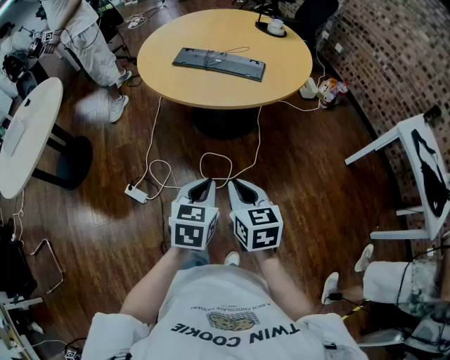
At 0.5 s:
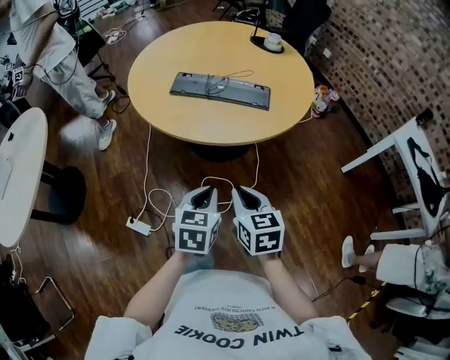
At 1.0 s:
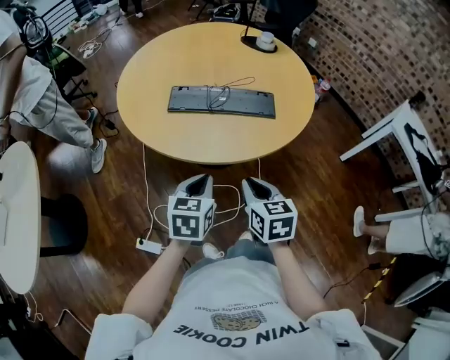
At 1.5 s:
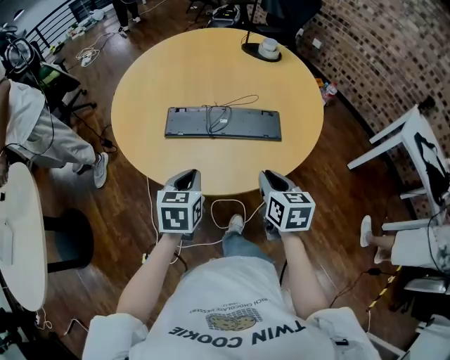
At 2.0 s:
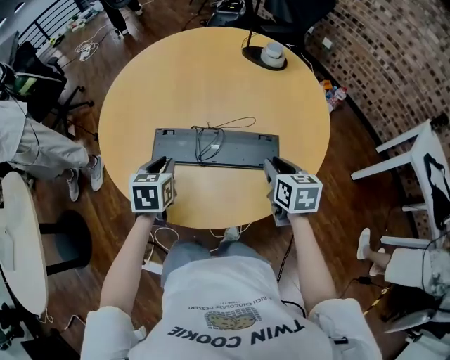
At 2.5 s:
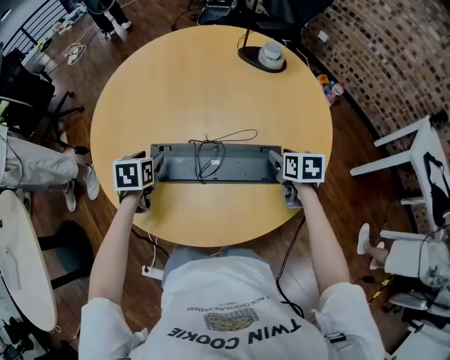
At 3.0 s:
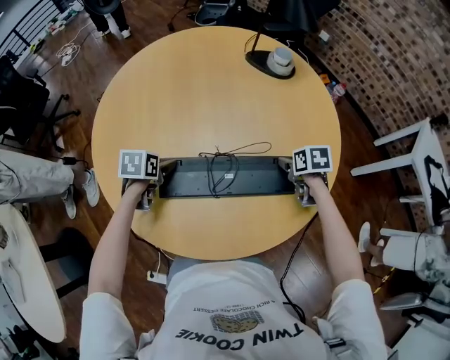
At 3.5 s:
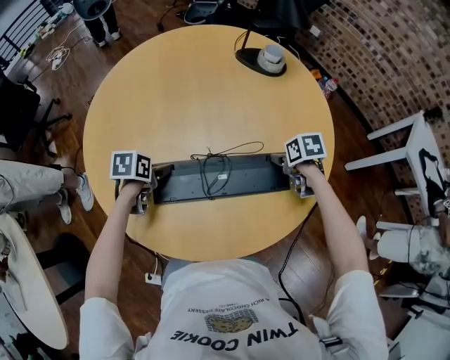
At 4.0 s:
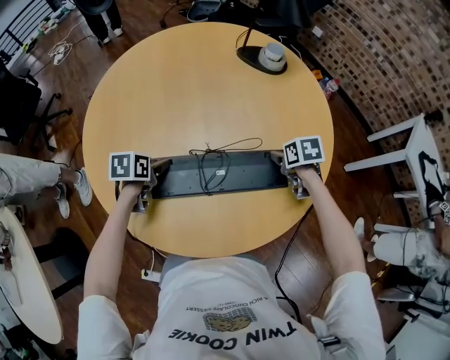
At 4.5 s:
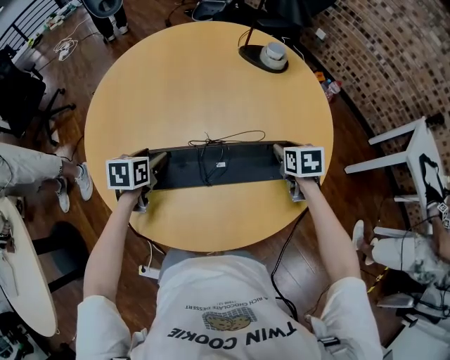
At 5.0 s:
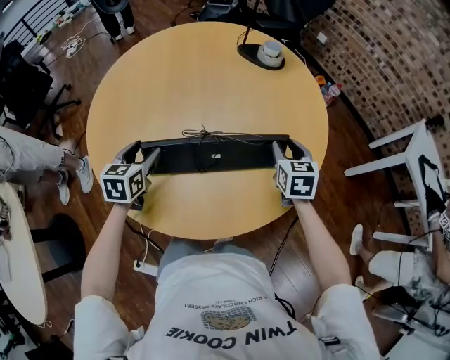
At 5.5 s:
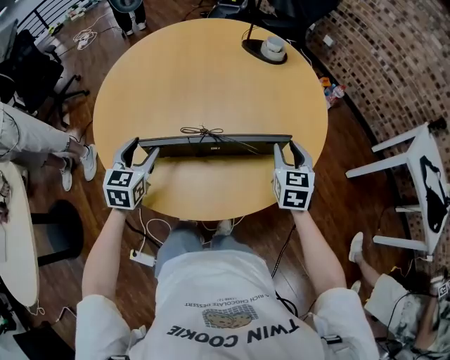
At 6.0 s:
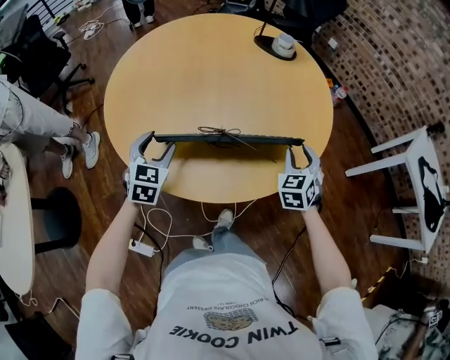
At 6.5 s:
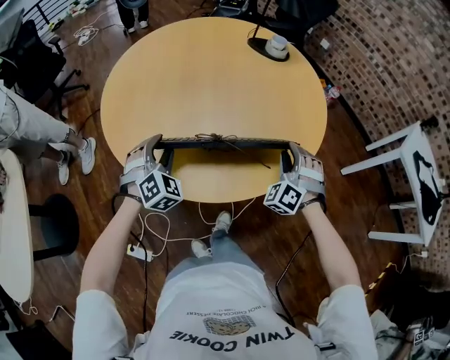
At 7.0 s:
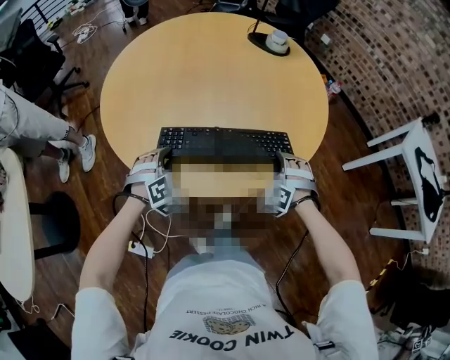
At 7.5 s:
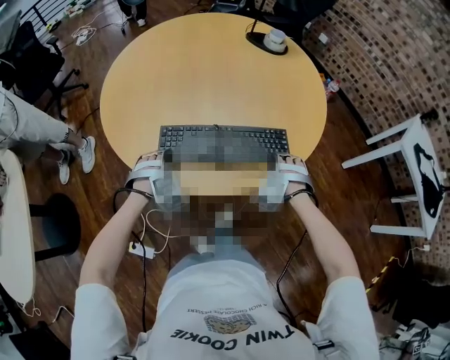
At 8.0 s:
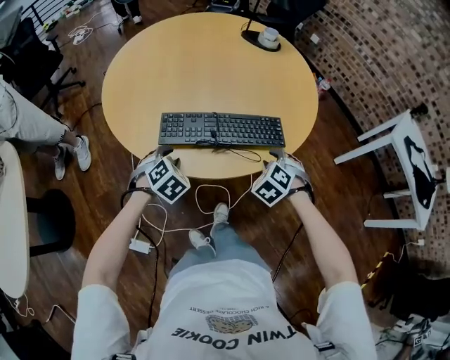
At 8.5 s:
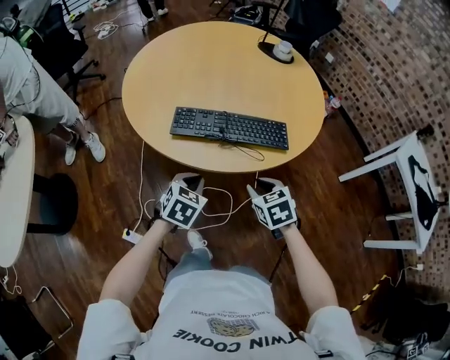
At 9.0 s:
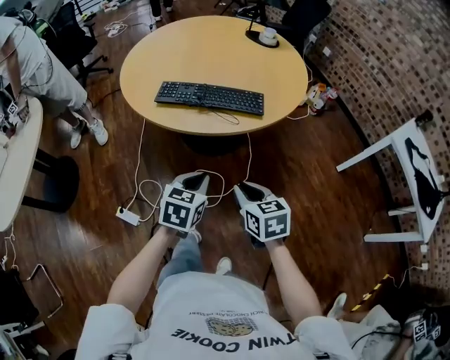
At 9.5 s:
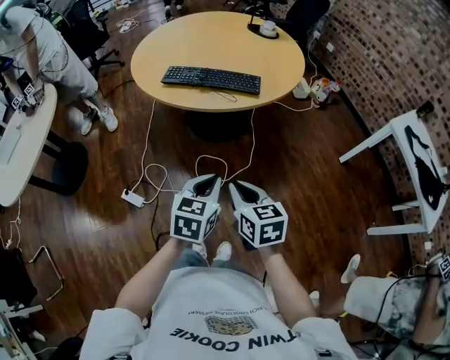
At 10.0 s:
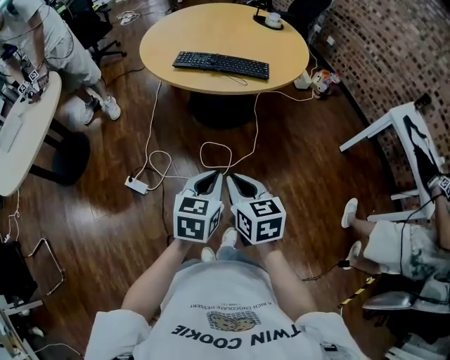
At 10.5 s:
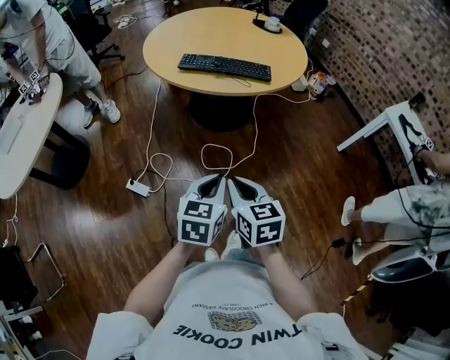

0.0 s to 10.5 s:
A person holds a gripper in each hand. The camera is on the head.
0.0 to 2.0 s: Both grippers are carried forward, roughly 60 cm. The right gripper swivels roughly 20 degrees.
2.0 to 4.0 s: The right gripper is displaced forward and downward by some 15 cm, changes its angle by roughly 30 degrees, and opens its fingers. The left gripper goes roughly 20 cm forward, downward and to the left, changes its angle by roughly 30 degrees, and opens.
4.0 to 6.5 s: The two grippers go approximately 20 cm backward and upward. The right gripper rolls counterclockwise, seen from behind, by approximately 80 degrees. Meanwhile the left gripper rotates around the line of its fingers by some 70 degrees, clockwise from behind.
6.5 to 8.5 s: The right gripper is displaced backward by about 20 cm, and changes its angle by about 70 degrees, while the left gripper moves backward and to the right, about 25 cm, changes its angle by about 50 degrees, and closes its fingers.
8.5 to 10.5 s: The two grippers go some 40 cm backward. The left gripper changes its angle by roughly 30 degrees. Meanwhile the right gripper rotates about 30 degrees, and closes its fingers.

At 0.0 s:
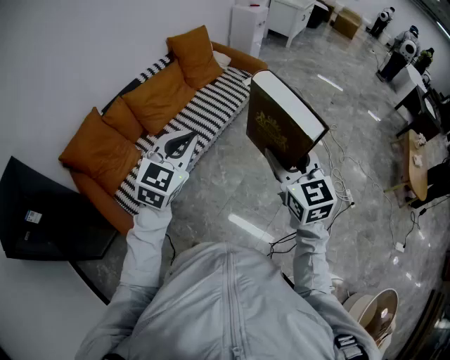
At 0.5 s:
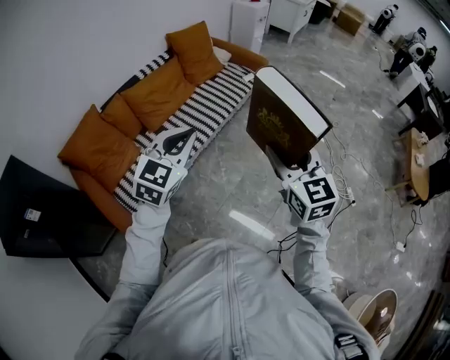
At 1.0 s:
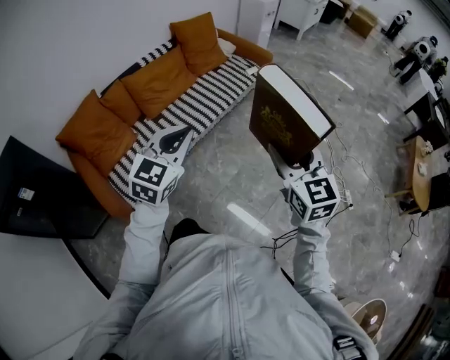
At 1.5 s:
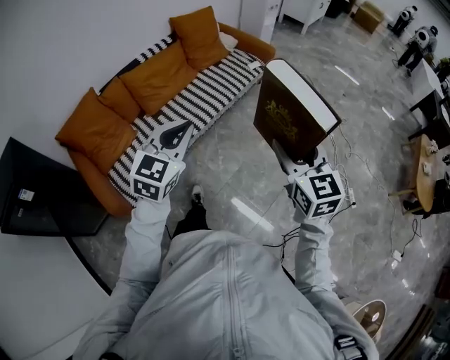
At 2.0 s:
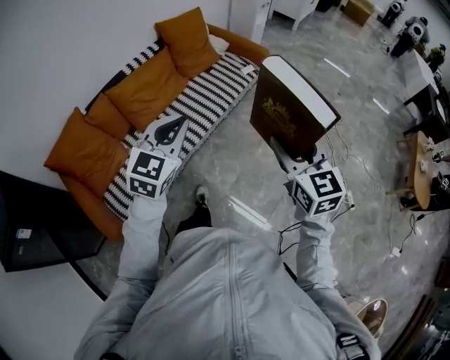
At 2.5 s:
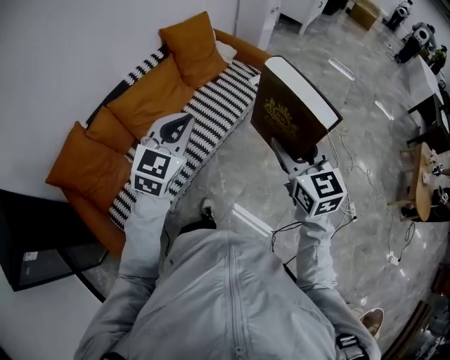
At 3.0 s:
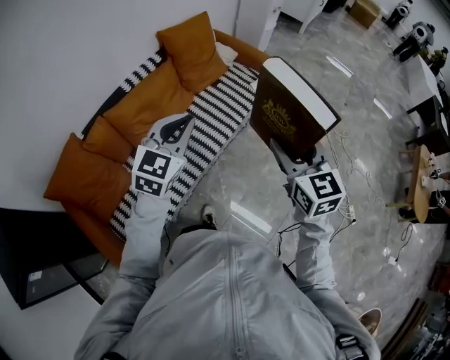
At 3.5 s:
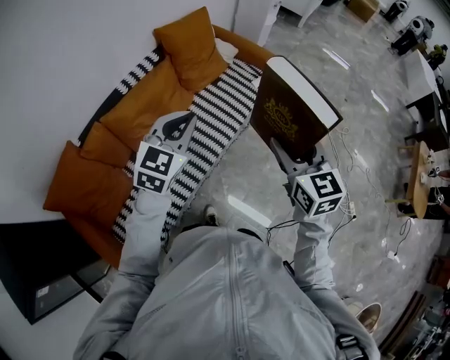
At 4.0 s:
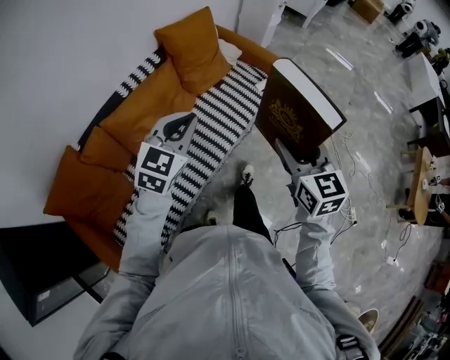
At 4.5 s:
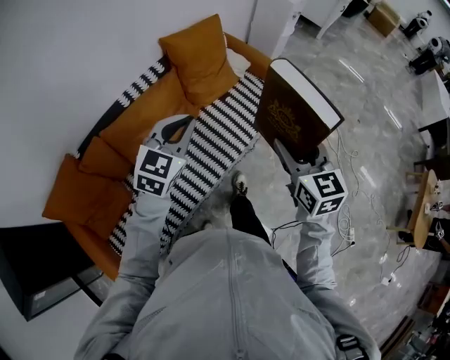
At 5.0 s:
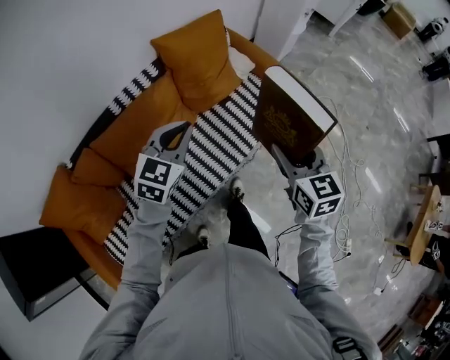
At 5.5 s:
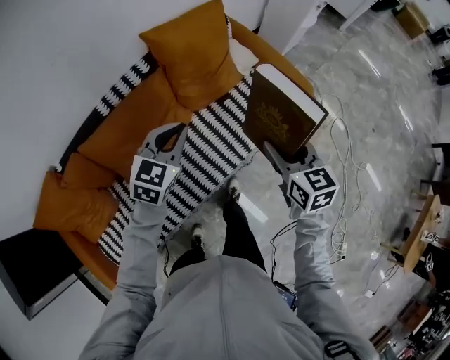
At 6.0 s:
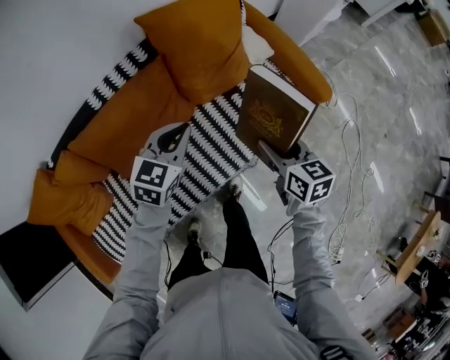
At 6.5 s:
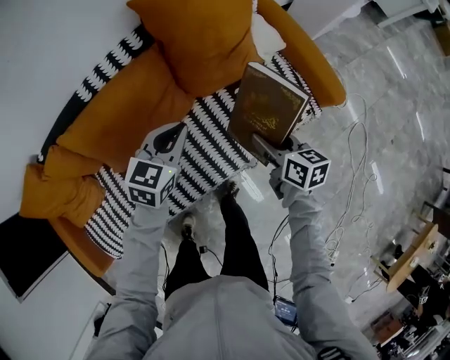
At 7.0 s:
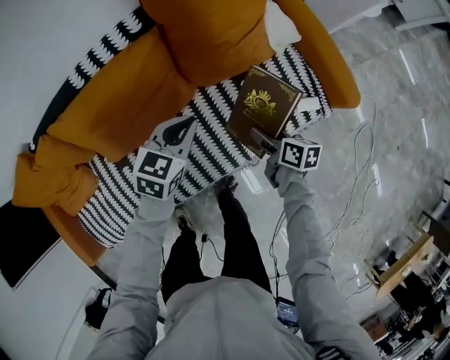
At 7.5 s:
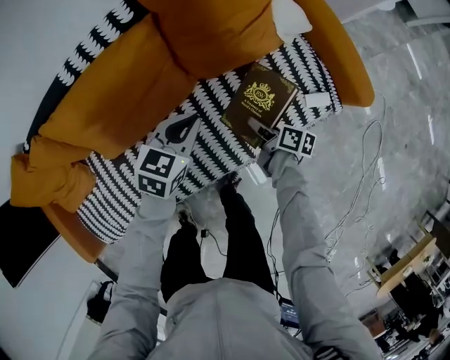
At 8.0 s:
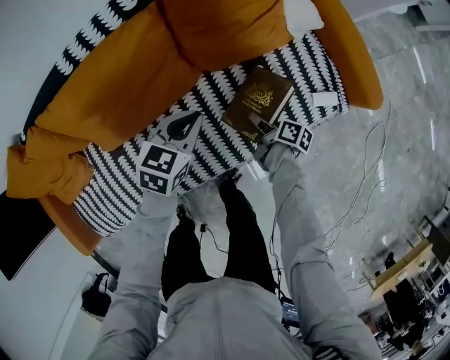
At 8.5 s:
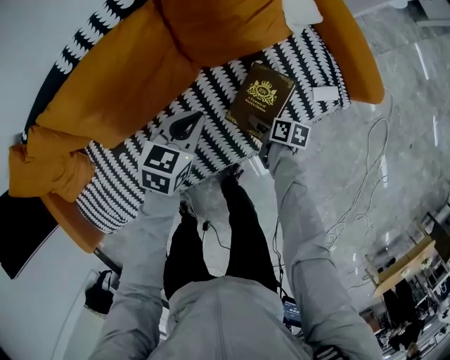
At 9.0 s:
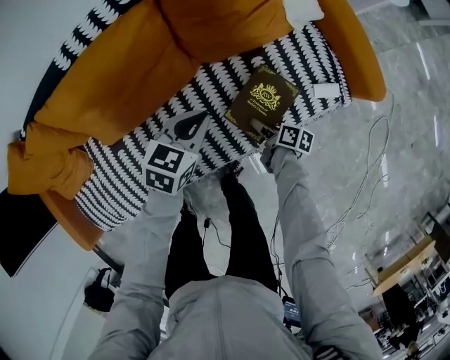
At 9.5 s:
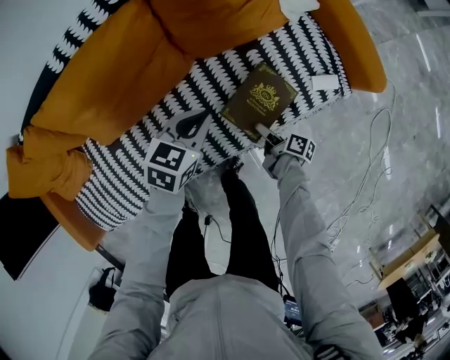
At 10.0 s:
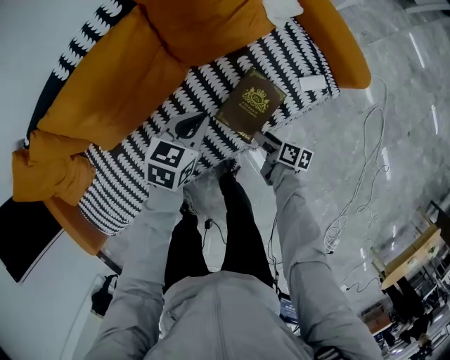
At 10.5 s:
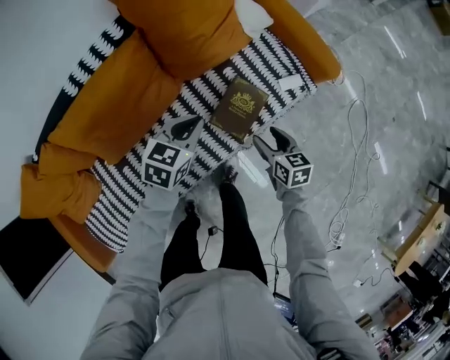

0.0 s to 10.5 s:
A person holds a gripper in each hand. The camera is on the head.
0.0 to 2.0 s: The grippers both shift forward by approximately 15 cm.
2.0 to 4.0 s: The right gripper travels forward and to the left by roughly 30 cm. Meanwhile the left gripper heads forward, covering some 30 cm.
4.0 to 6.5 s: The right gripper moves roughly 50 cm, and rotates about 50 degrees; the left gripper ends up roughly 40 cm from where it was, and turns by approximately 30 degrees.
6.5 to 8.5 s: The left gripper moves downward, approximately 15 cm. Meanwhile the right gripper heads downward, covering approximately 30 cm, and changes its angle by some 30 degrees.
8.5 to 10.5 s: The right gripper is displaced upward by roughly 20 cm, and rotates roughly 40 degrees. Meanwhile the left gripper is displaced upward by roughly 10 cm.

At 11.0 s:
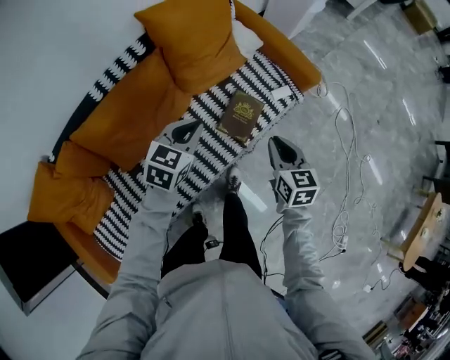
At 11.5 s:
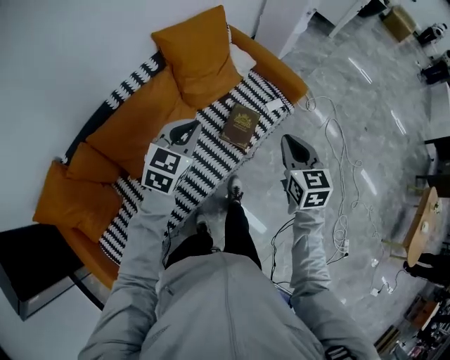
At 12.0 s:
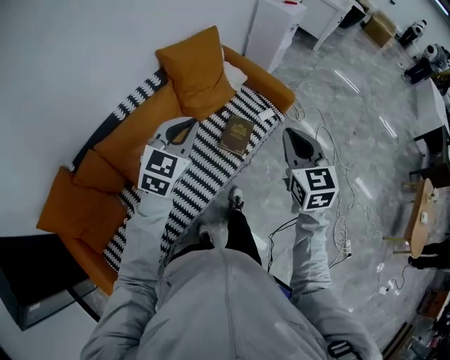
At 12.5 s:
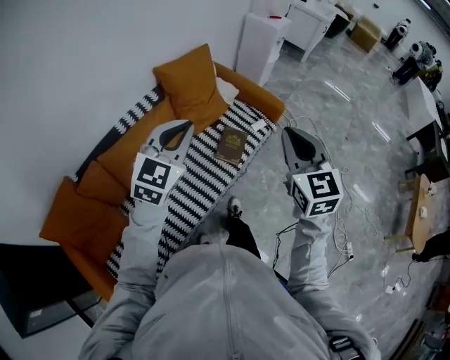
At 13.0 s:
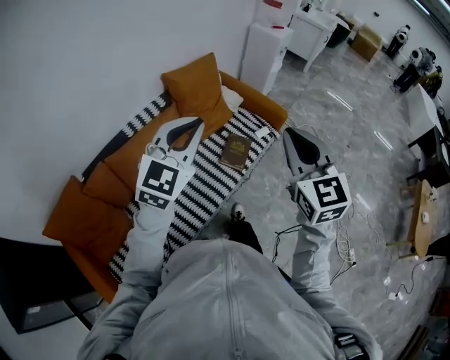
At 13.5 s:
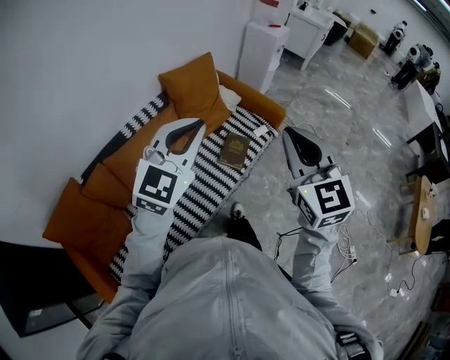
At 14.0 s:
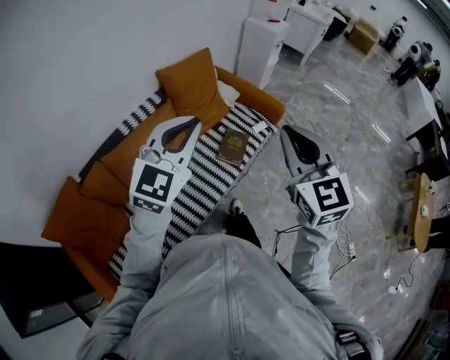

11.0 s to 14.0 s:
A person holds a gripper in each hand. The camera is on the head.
11.0 to 12.5 s: The two grippers go approximately 35 cm upward and backward. The right gripper turns by roughly 30 degrees, while the left gripper changes its angle by some 30 degrees.
12.5 to 14.0 s: Both grippers move upward, about 5 cm.

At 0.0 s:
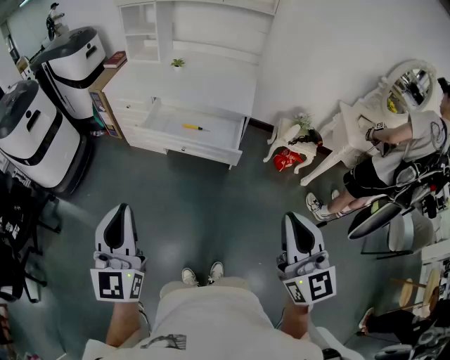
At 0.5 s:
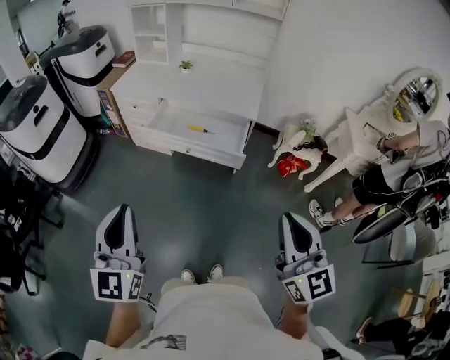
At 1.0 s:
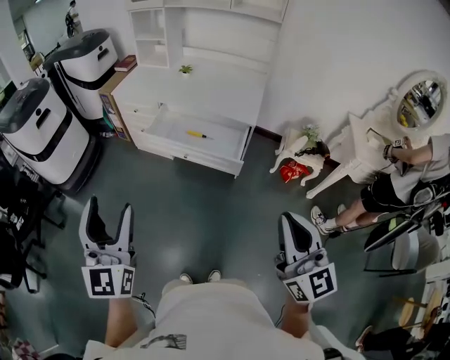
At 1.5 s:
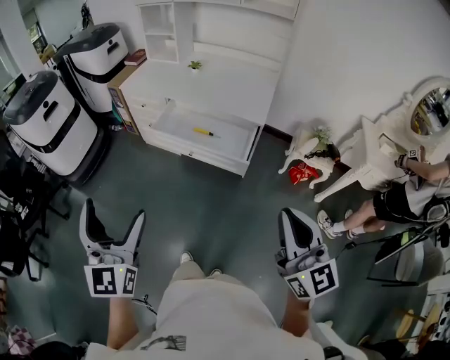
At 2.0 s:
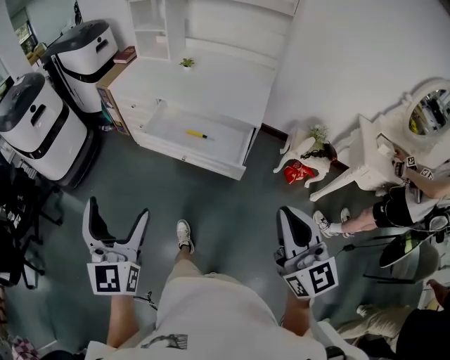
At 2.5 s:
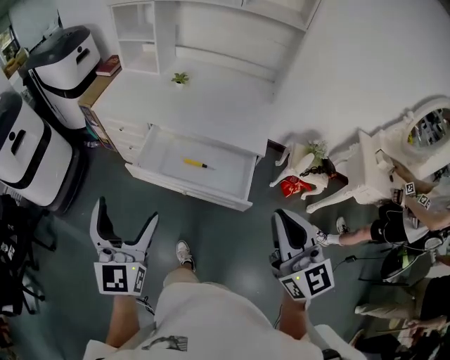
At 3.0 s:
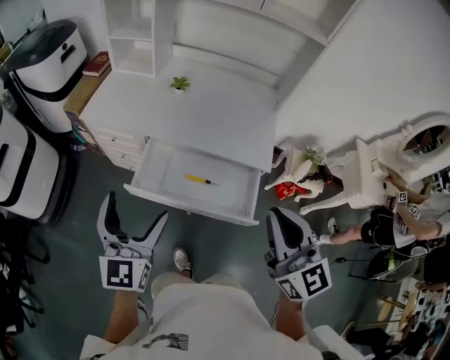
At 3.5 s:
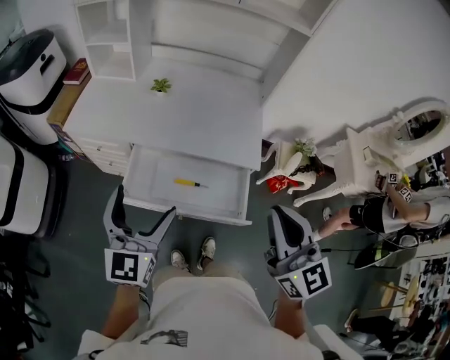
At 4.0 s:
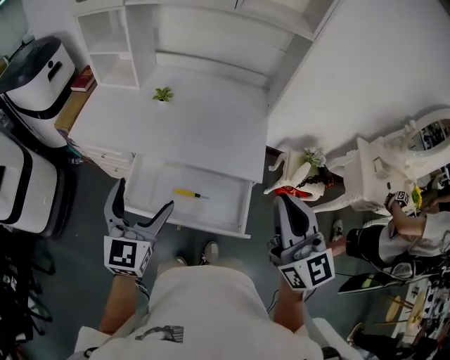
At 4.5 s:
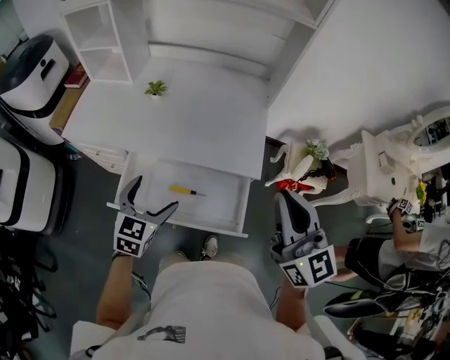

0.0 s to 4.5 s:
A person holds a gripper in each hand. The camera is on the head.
0.0 to 2.0 s: The left gripper moves forward, roughly 10 cm, and opens its fingers. The right gripper goes about 15 cm forward and to the right.
2.0 to 4.5 s: The two grippers travel together, forward, roughly 50 cm. The left gripper angles its fingers downward, by roughly 30 degrees.
